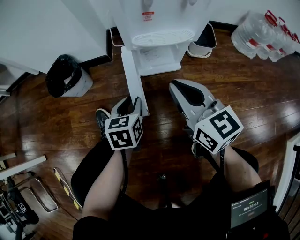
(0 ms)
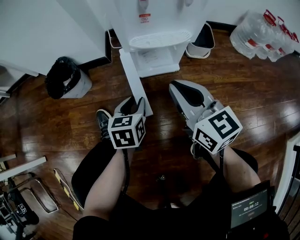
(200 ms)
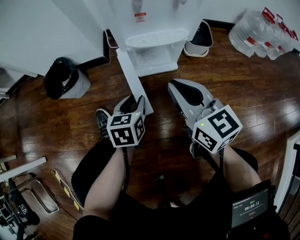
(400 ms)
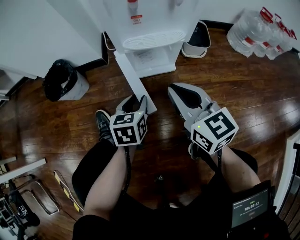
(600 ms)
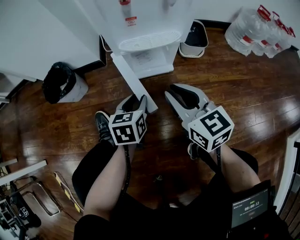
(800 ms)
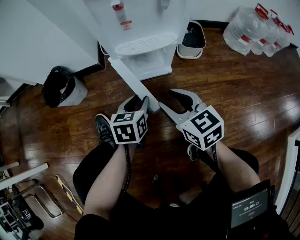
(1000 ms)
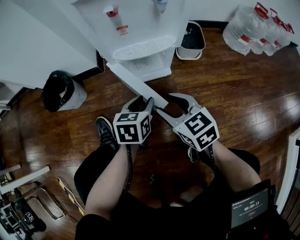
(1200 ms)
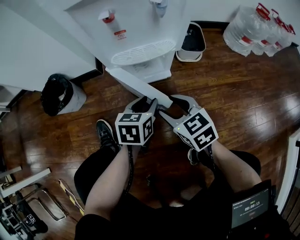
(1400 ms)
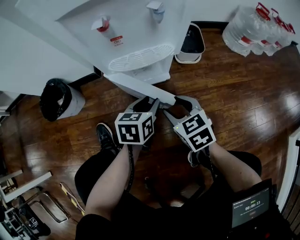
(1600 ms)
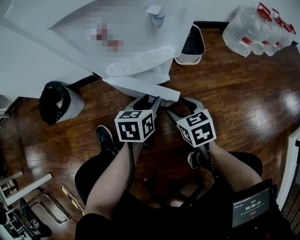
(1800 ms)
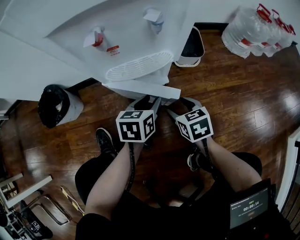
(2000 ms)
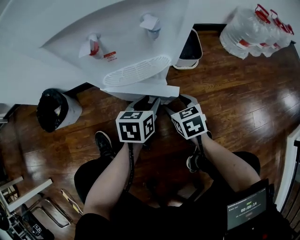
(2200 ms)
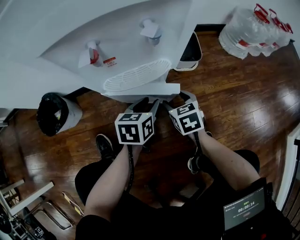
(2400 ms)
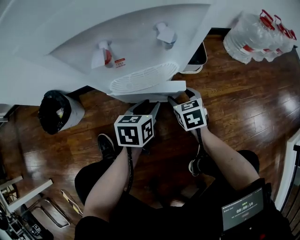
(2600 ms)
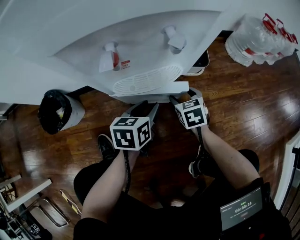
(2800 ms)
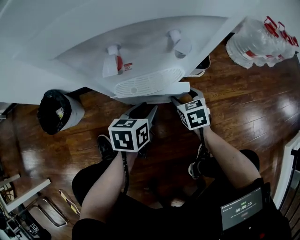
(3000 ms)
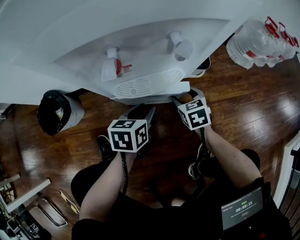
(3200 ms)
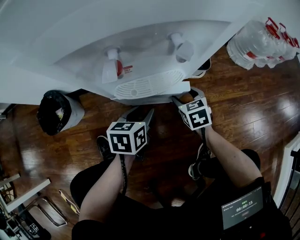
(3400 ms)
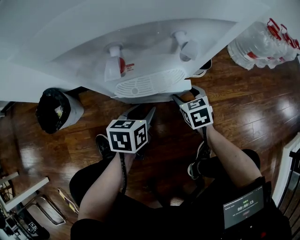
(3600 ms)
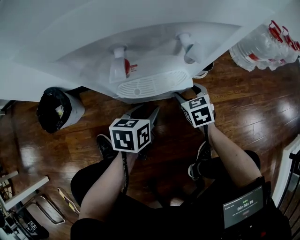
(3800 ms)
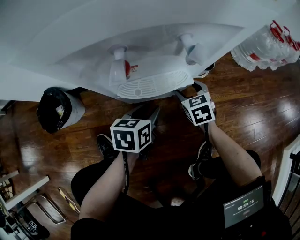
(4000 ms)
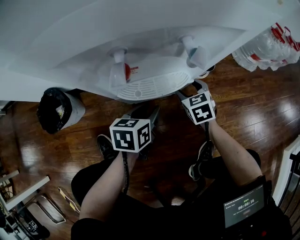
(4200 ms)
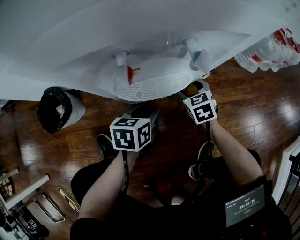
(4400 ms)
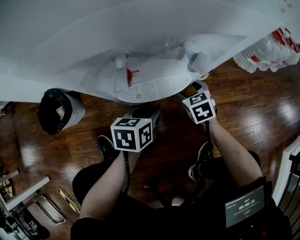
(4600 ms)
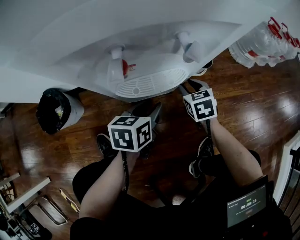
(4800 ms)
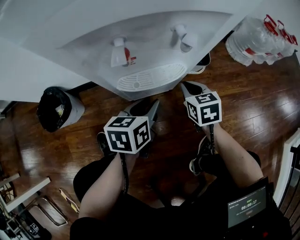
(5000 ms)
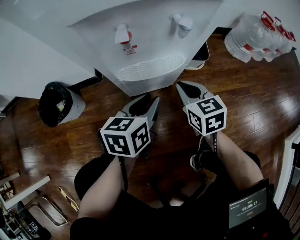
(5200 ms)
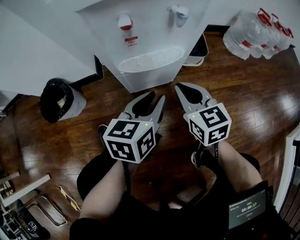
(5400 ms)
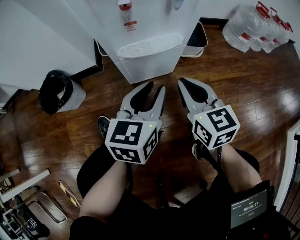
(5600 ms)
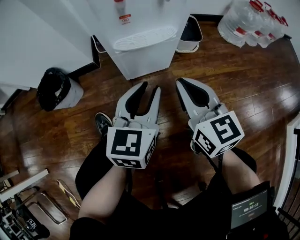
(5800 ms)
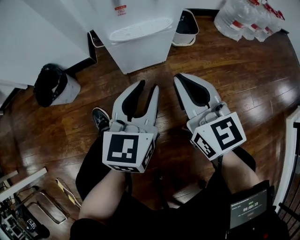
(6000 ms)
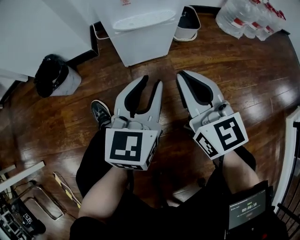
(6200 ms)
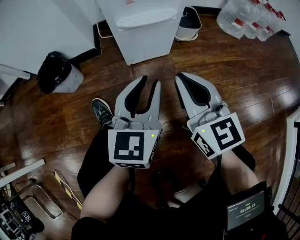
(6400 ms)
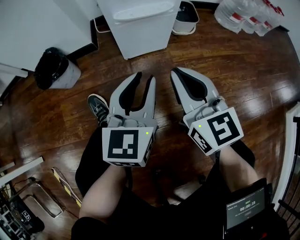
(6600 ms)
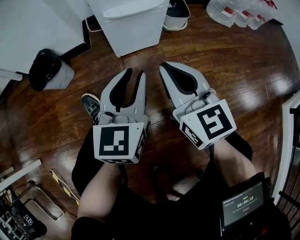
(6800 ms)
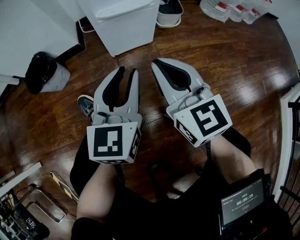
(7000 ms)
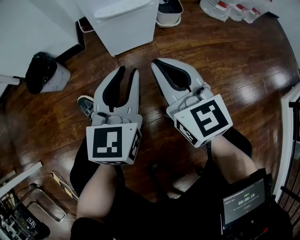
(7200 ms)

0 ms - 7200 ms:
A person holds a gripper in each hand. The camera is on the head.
0 ms - 1400 ms: The left gripper is displaced to the right by about 15 cm; the right gripper travels downward by approximately 15 cm, rotates approximately 30 degrees, and opens.
1400 ms - 2800 ms: The right gripper shifts roughly 20 cm forward and downward, and changes its angle by some 30 degrees; the left gripper heads forward, covering about 10 cm.
2800 ms - 4400 ms: The right gripper shifts approximately 5 cm forward.
4400 ms - 5800 ms: The left gripper moves upward and backward, about 20 cm, and changes its angle by roughly 40 degrees. Meanwhile the right gripper goes about 30 cm upward and backward, tips its fingers upward by about 30 degrees, and closes.
5800 ms - 7200 ms: The grippers both shift backward by approximately 10 cm.

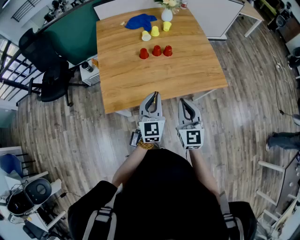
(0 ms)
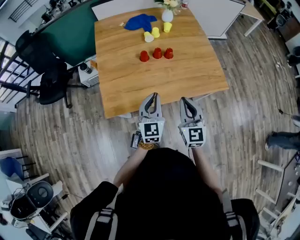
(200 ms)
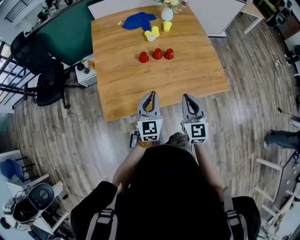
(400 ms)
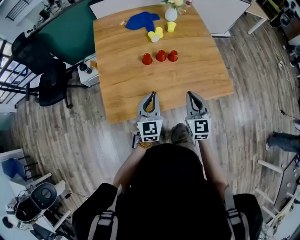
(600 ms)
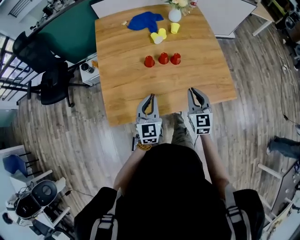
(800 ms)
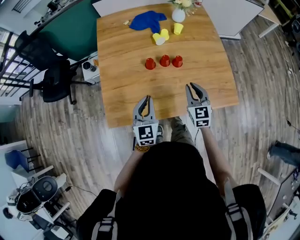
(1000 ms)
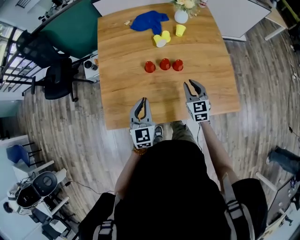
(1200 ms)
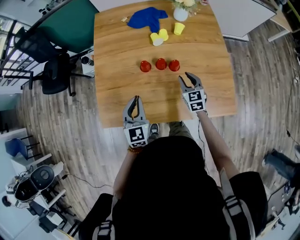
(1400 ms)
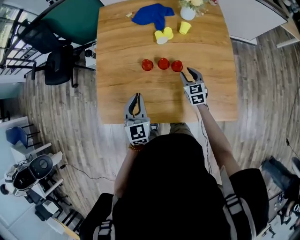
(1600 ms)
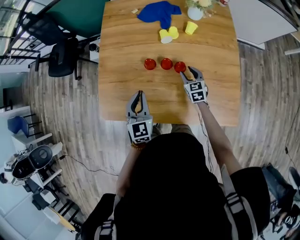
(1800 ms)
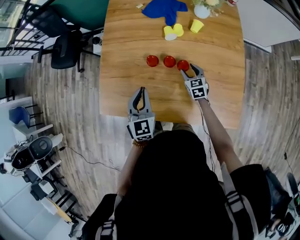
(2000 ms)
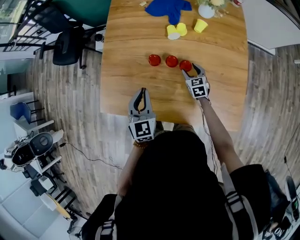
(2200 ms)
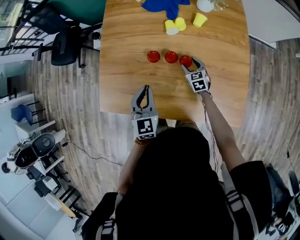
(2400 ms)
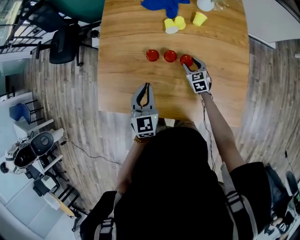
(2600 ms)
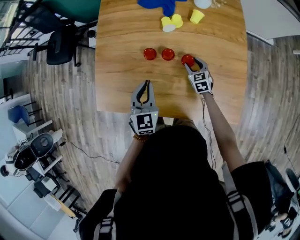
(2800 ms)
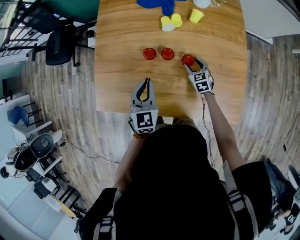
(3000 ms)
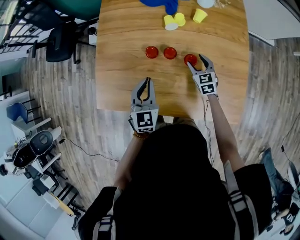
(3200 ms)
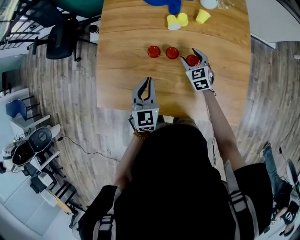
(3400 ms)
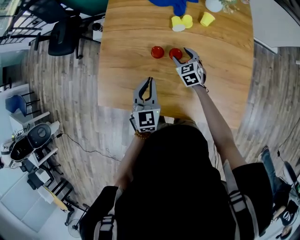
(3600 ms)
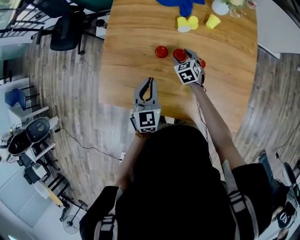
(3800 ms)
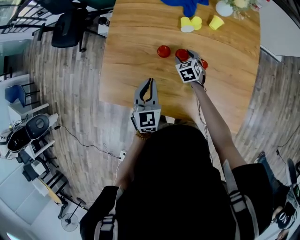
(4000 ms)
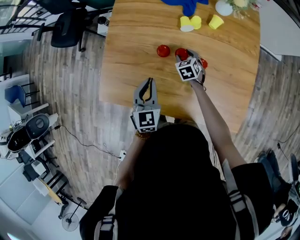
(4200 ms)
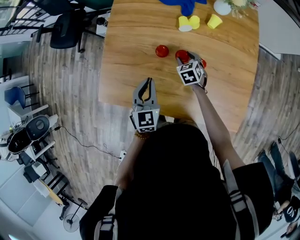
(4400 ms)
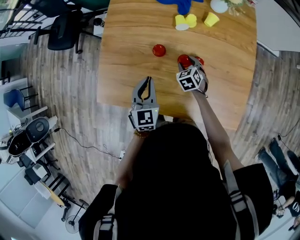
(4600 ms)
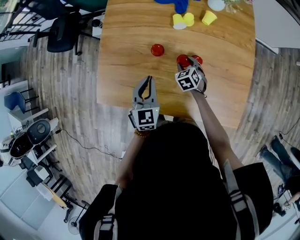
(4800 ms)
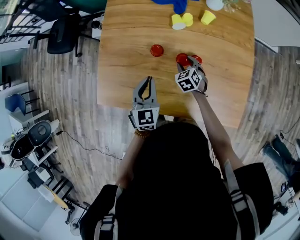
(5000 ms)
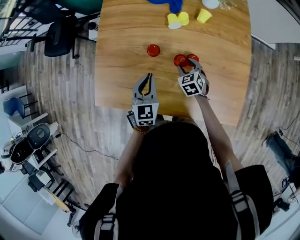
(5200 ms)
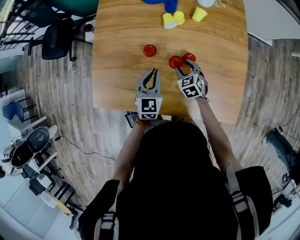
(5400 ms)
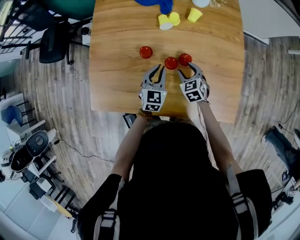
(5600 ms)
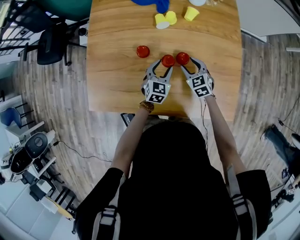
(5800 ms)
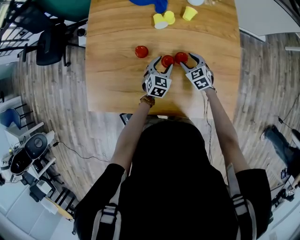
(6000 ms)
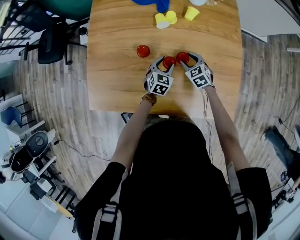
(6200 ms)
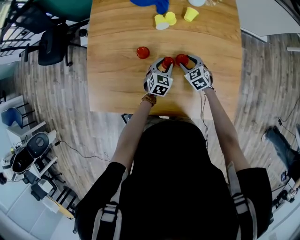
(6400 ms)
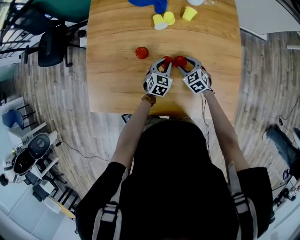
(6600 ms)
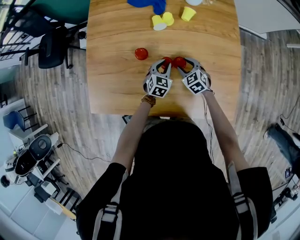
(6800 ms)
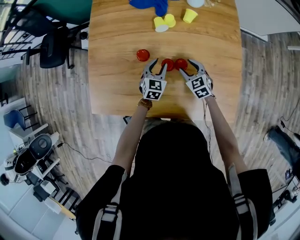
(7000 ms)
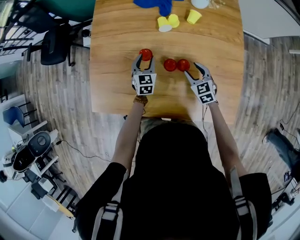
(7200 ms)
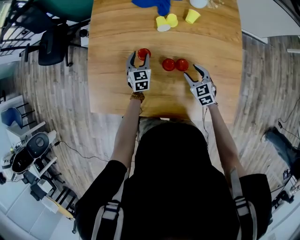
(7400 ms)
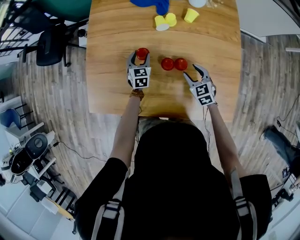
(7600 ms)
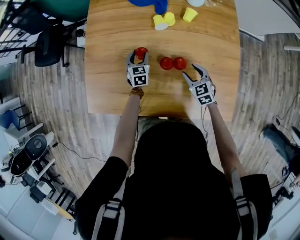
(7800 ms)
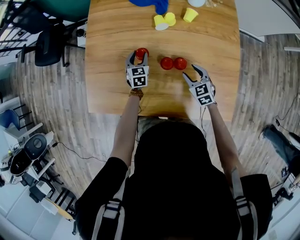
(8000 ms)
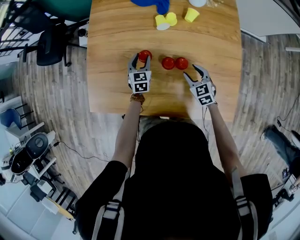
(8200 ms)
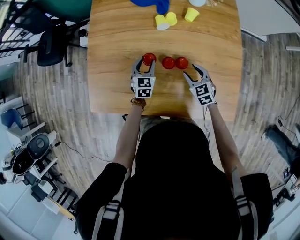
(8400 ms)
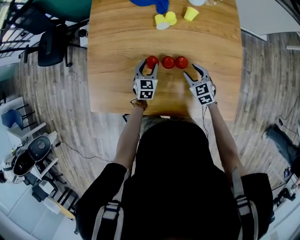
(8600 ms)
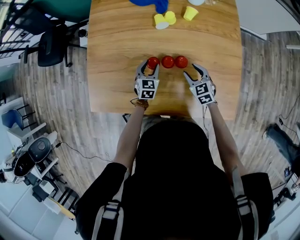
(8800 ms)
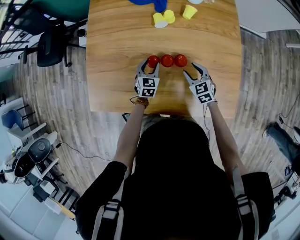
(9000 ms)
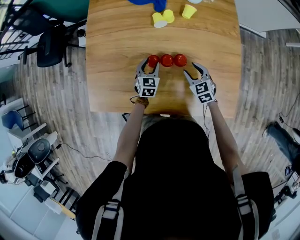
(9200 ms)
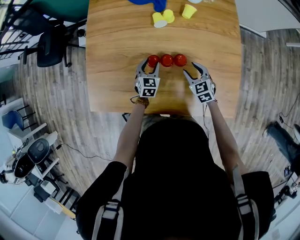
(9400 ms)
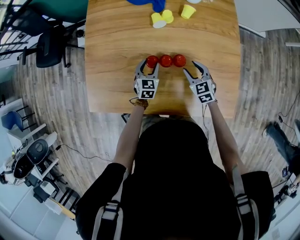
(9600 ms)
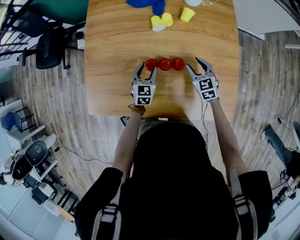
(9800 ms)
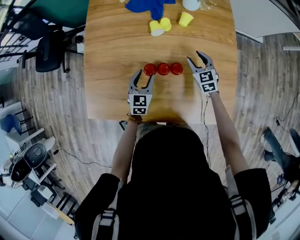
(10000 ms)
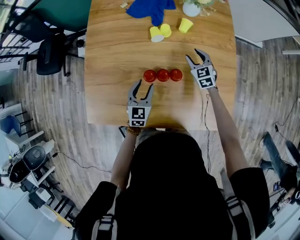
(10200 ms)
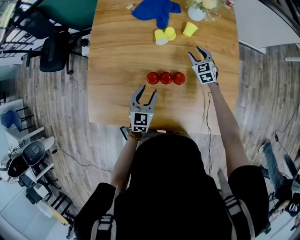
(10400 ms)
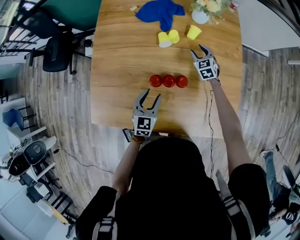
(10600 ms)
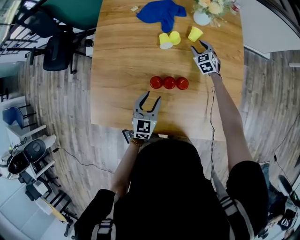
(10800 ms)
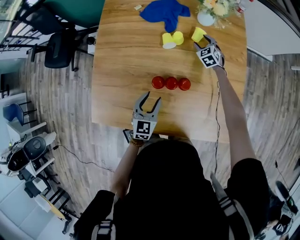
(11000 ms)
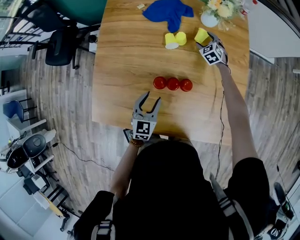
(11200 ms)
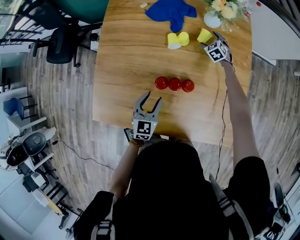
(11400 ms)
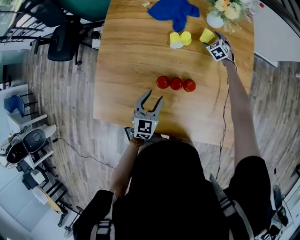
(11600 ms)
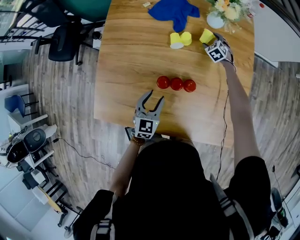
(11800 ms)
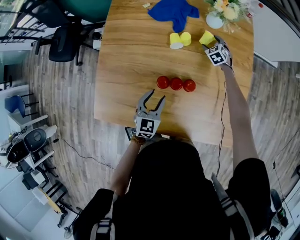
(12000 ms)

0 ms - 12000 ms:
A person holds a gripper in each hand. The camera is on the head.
0 ms - 1600 ms: The left gripper moves forward, some 20 cm, and changes its angle by roughly 20 degrees. Meanwhile the right gripper heads forward and downward, covering roughly 50 cm, changes its angle by about 30 degrees, and opens up.
1600 ms - 3000 ms: The left gripper goes roughly 5 cm to the right. Meanwhile the right gripper travels downward by some 10 cm.
3000 ms - 4400 ms: The right gripper moves to the left and forward, some 10 cm.
4400 ms - 6000 ms: The left gripper travels to the right, downward and forward by approximately 25 cm, swivels about 30 degrees, and opens; the right gripper is displaced to the right by about 10 cm.
6000 ms - 7600 ms: The left gripper is displaced to the left and forward by about 15 cm, and closes and opens again. Meanwhile the right gripper shifts by roughly 5 cm.
7600 ms - 9000 ms: The left gripper heads backward, covering approximately 5 cm.
9000 ms - 10400 ms: The right gripper shifts approximately 20 cm forward, while the left gripper travels upward and backward by approximately 10 cm.
10400 ms - 12000 ms: The right gripper moves forward and downward, approximately 15 cm, and opens up.

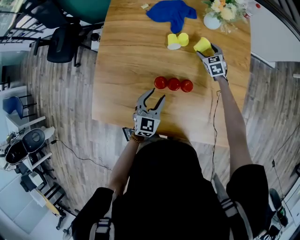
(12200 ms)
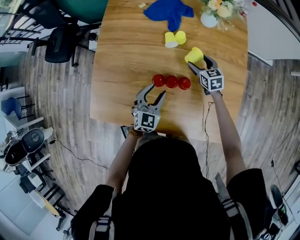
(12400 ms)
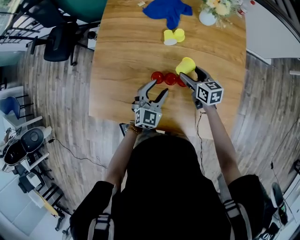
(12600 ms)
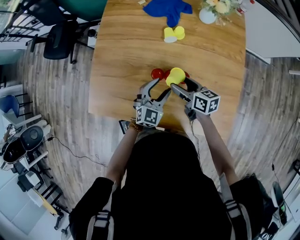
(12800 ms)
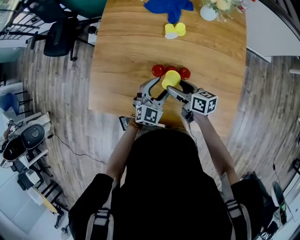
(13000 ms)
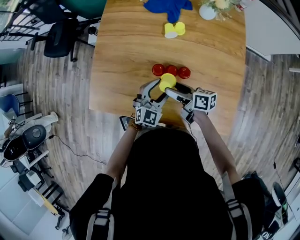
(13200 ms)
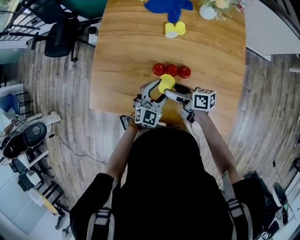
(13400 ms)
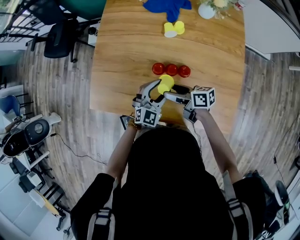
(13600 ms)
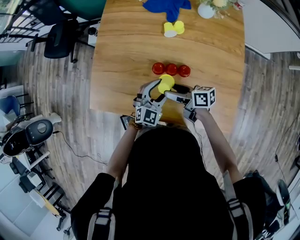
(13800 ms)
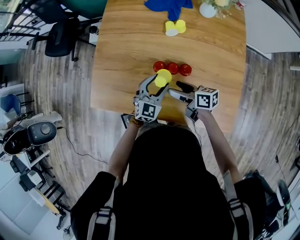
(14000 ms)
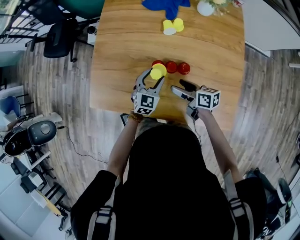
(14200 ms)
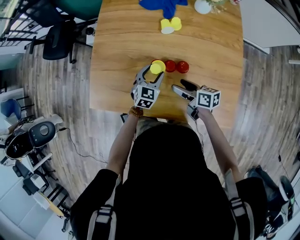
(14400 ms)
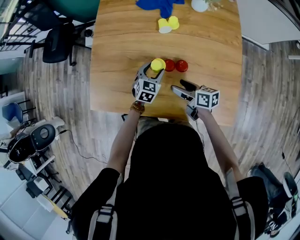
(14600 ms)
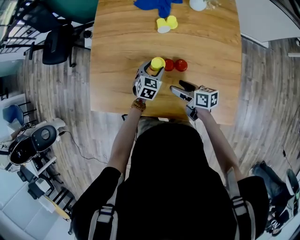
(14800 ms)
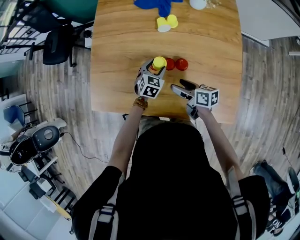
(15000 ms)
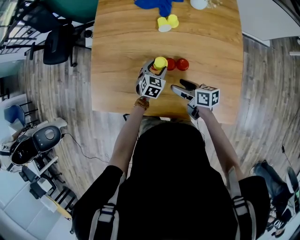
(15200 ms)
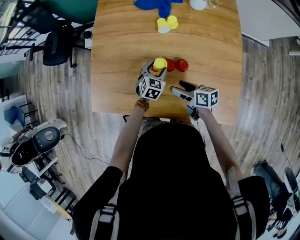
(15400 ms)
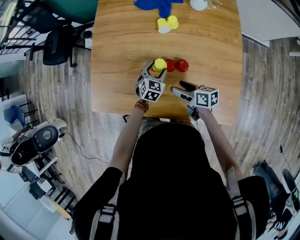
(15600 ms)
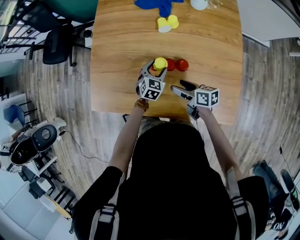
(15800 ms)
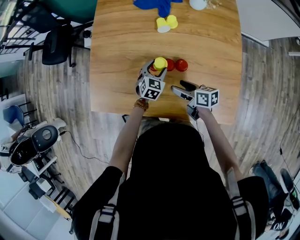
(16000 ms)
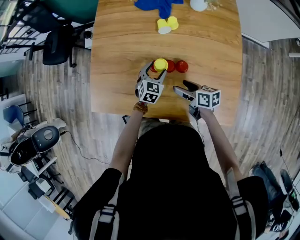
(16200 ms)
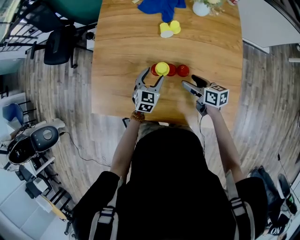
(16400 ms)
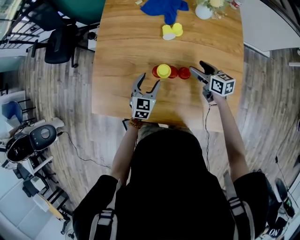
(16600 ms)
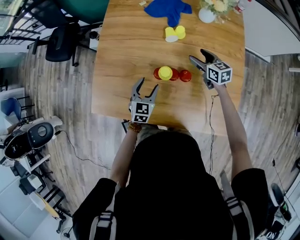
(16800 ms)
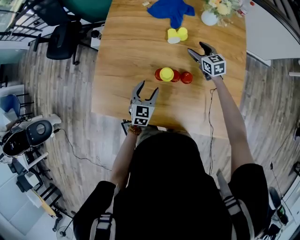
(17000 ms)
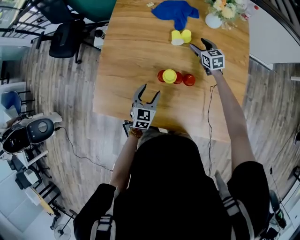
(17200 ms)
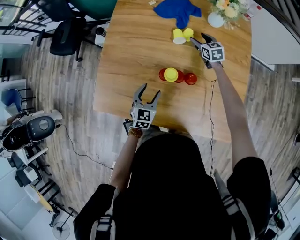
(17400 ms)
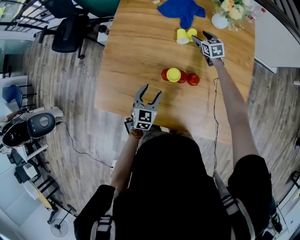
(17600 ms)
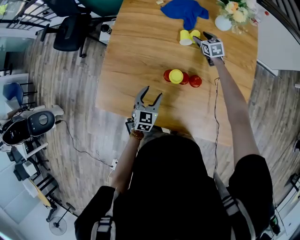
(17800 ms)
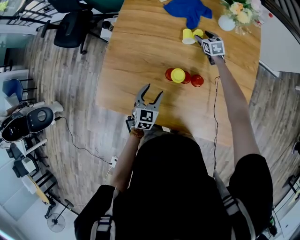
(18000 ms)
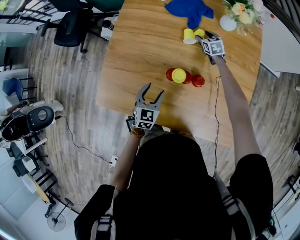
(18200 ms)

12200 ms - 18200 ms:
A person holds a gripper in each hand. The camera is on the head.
12200 ms - 13800 ms: The right gripper moves backward, to the left and upward, about 35 cm, and rotates about 70 degrees, while the left gripper moves backward, about 5 cm.
13800 ms - 15200 ms: The right gripper shifts by about 5 cm, while the left gripper shifts some 15 cm downward and forward, and turns by about 30 degrees.
15200 ms - 16600 ms: The left gripper heads upward and to the left, covering approximately 10 cm; the right gripper heads to the right and forward, covering some 15 cm, and swivels approximately 20 degrees.
16600 ms - 18200 ms: The left gripper heads to the left, covering about 5 cm. The right gripper goes about 25 cm forward and downward, and swivels some 30 degrees.
